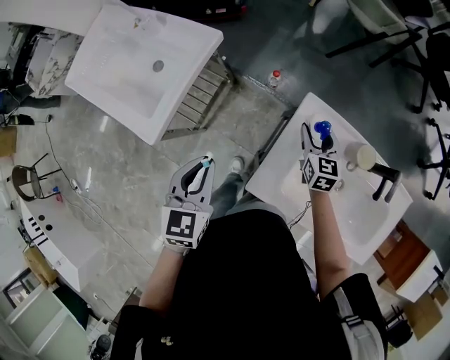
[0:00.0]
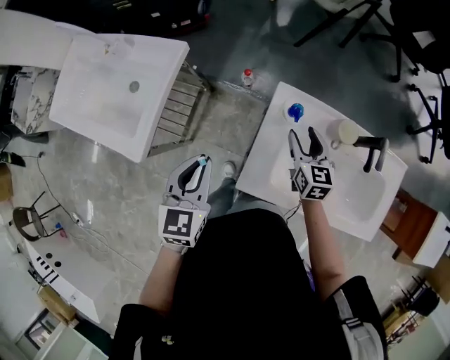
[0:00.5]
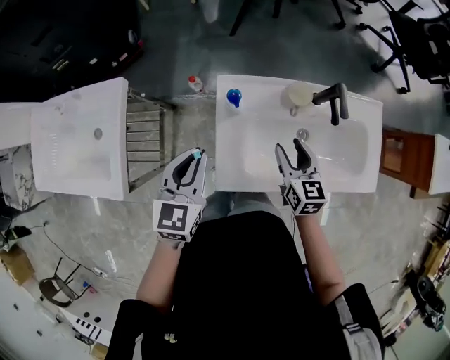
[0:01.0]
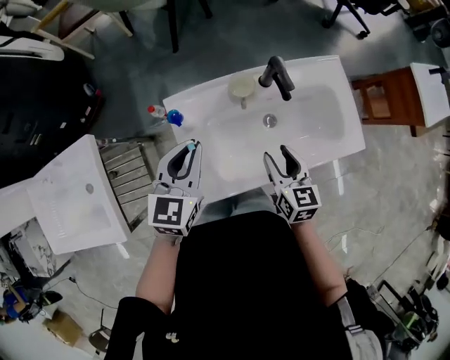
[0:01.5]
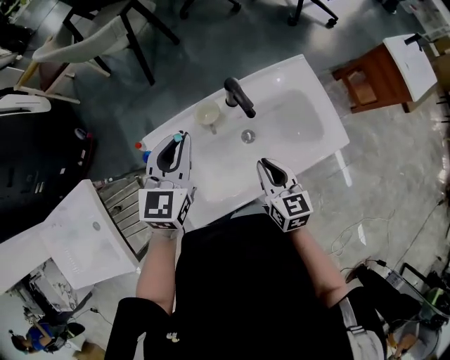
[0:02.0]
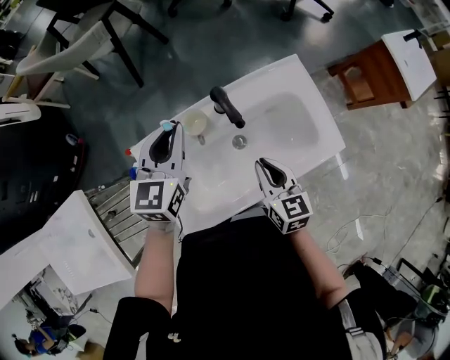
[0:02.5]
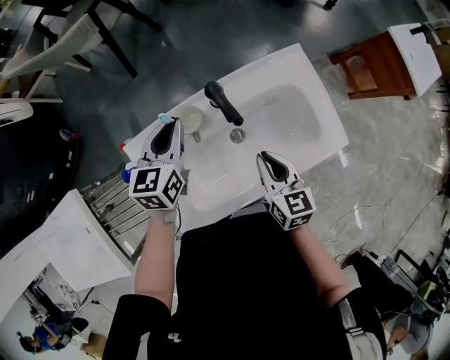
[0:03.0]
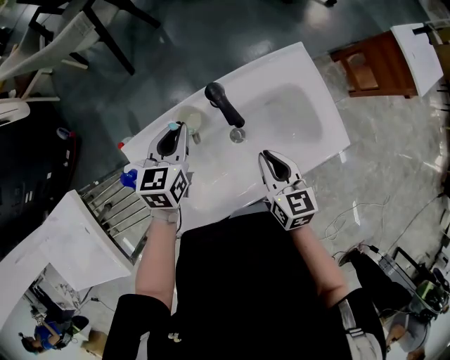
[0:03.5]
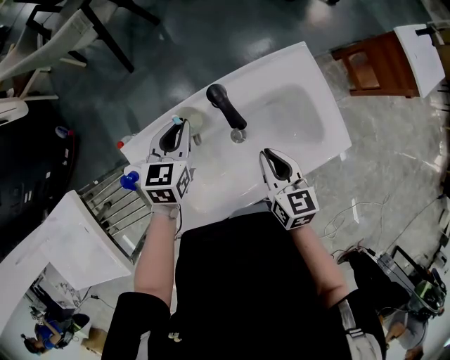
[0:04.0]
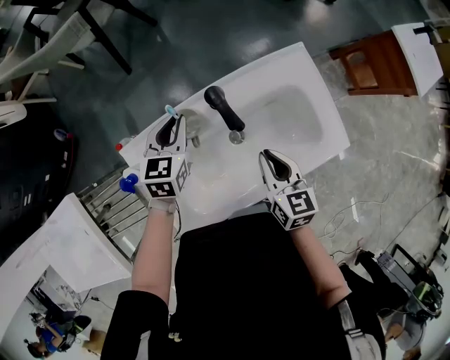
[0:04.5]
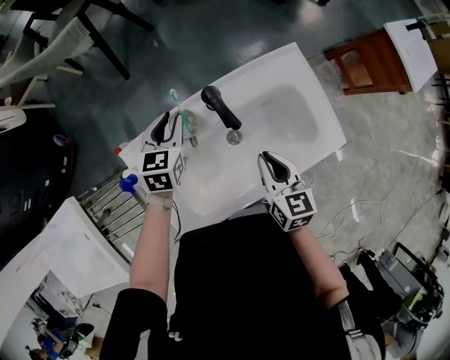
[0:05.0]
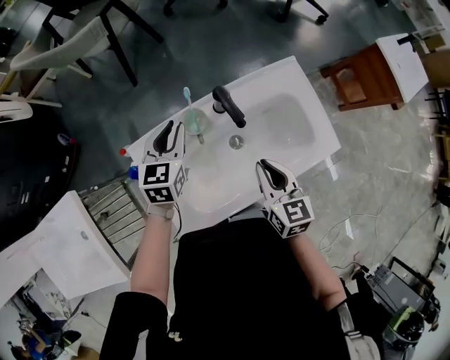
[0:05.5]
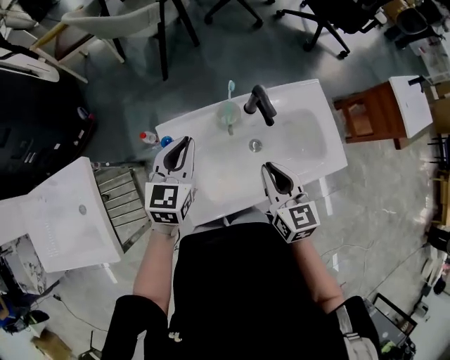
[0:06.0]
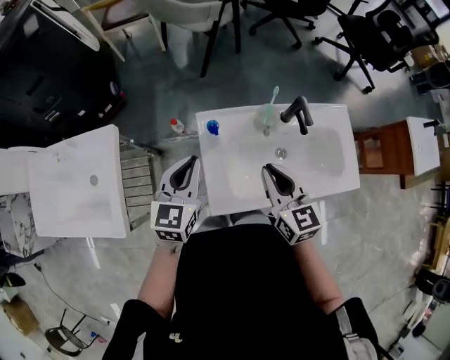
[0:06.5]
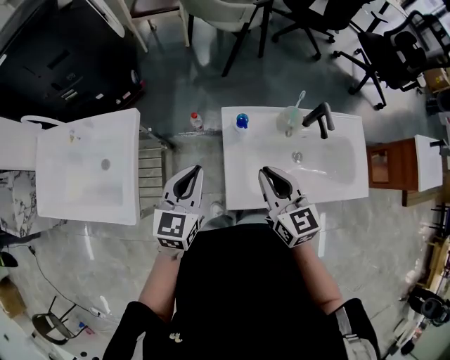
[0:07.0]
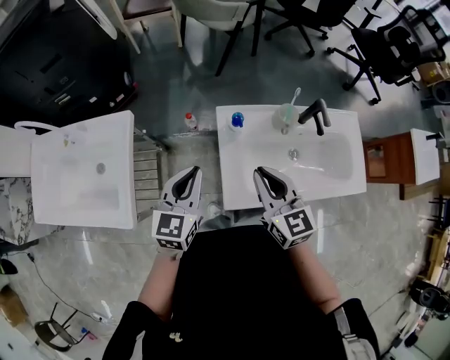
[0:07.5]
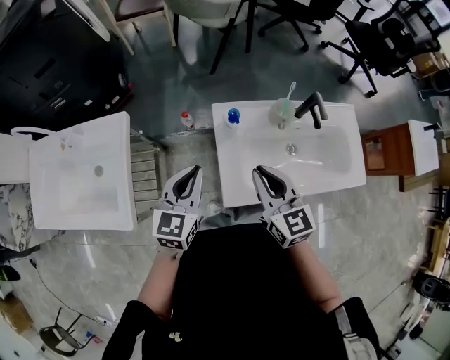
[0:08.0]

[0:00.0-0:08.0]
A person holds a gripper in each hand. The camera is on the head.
0:00.0 to 0:02.0: The right gripper changes place by about 35 cm, swivels roughly 40 degrees, and closes its fingers, while the left gripper changes place by some 40 cm, and rotates approximately 60 degrees.
0:02.0 to 0:04.0: The right gripper is displaced forward by about 5 cm. The left gripper is displaced downward and forward by some 20 cm.
0:04.0 to 0:06.0: The right gripper travels upward, to the left and backward by about 15 cm, while the left gripper travels upward, backward and to the left by roughly 20 cm.
0:06.0 to 0:08.0: The right gripper travels to the left by about 20 cm. Meanwhile the left gripper is displaced to the left and backward by approximately 20 cm.

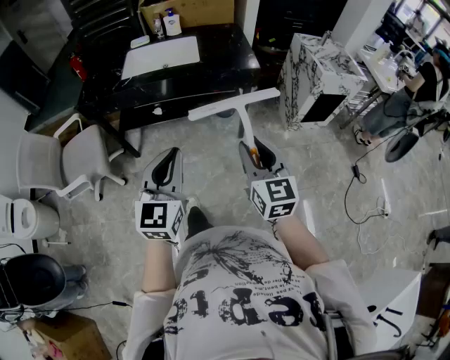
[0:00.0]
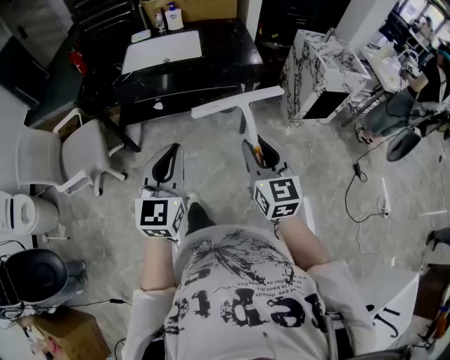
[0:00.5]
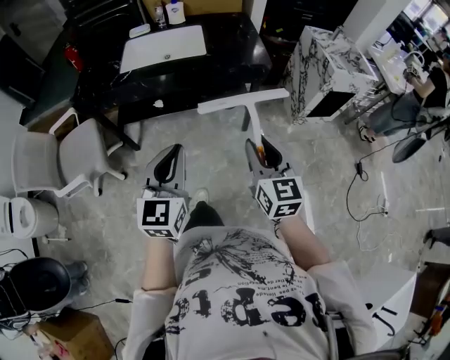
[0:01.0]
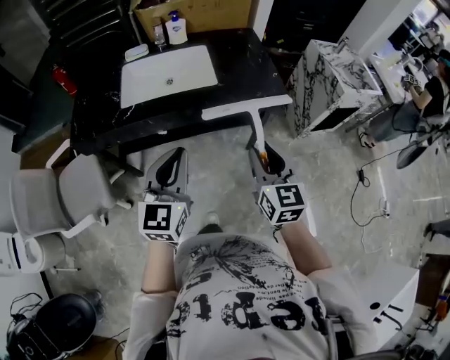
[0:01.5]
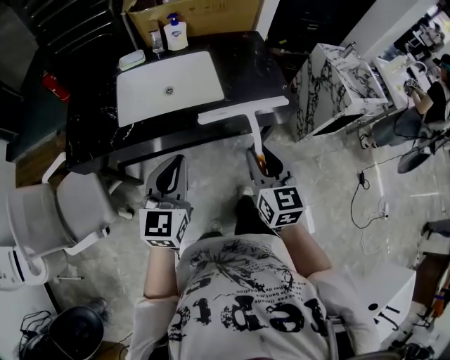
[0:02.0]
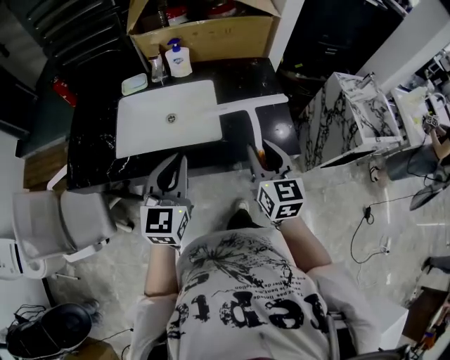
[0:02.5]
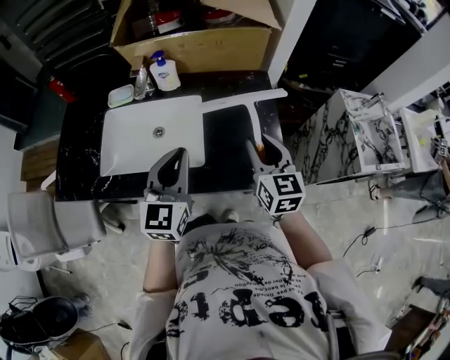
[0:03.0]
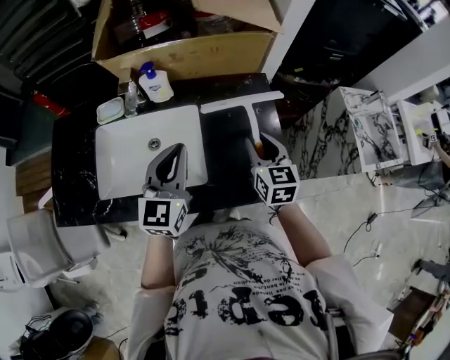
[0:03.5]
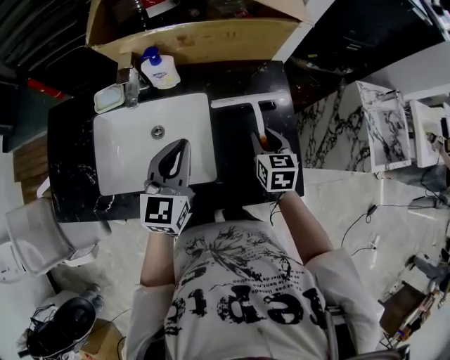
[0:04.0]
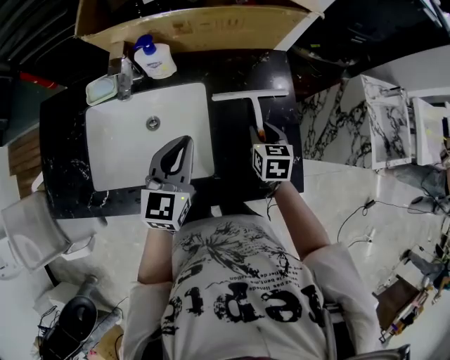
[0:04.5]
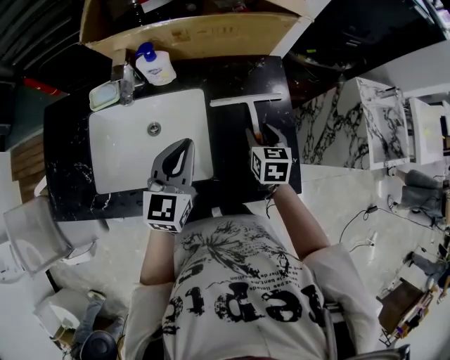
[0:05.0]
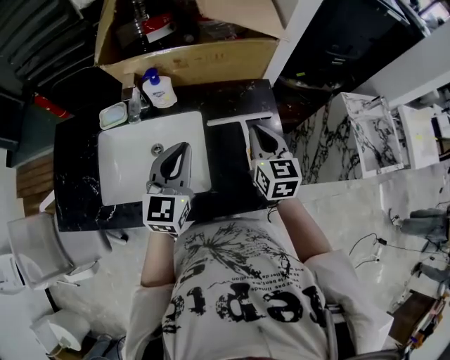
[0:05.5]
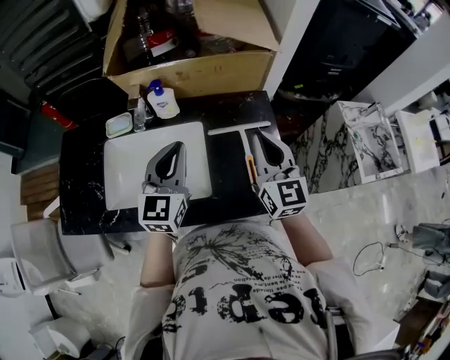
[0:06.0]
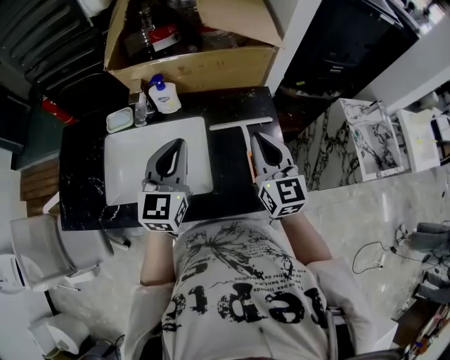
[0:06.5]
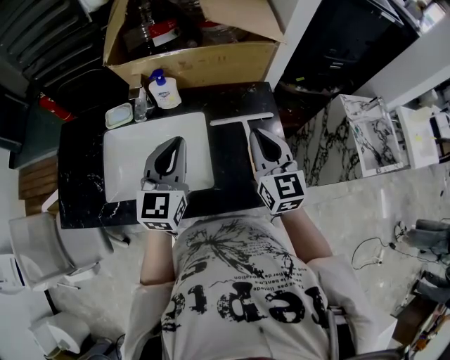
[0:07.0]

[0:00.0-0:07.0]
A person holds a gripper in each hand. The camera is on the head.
0:00.0 to 0:02.0: The two grippers go some 35 cm forward and to the left.
0:02.0 to 0:03.5: The grippers both shift forward by about 35 cm.
0:03.5 to 0:05.0: The right gripper goes approximately 10 cm downward. The left gripper goes roughly 5 cm downward.
0:05.0 to 0:07.0: The right gripper is displaced upward by approximately 20 cm, tips its fingers upward by roughly 40 degrees, and closes its fingers, while the left gripper shifts some 10 cm upward.

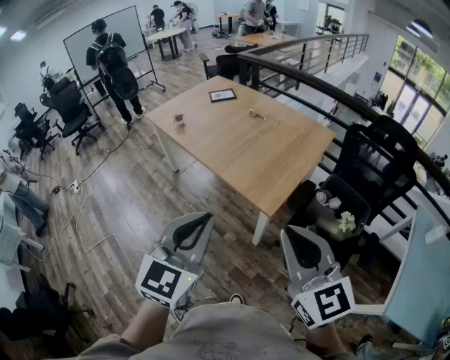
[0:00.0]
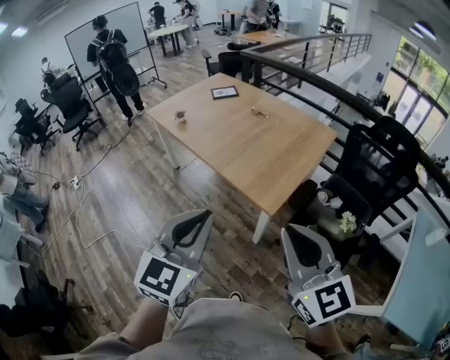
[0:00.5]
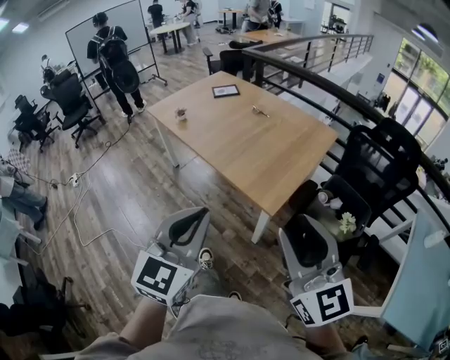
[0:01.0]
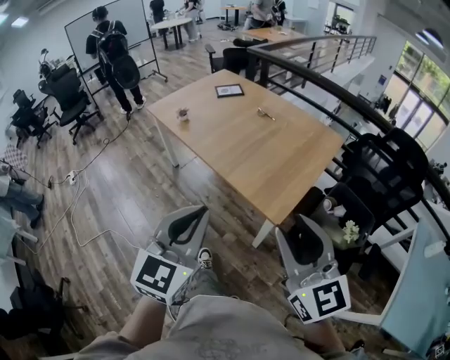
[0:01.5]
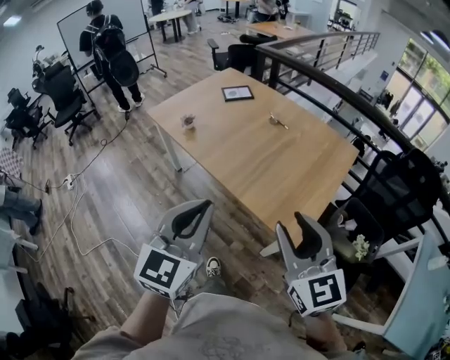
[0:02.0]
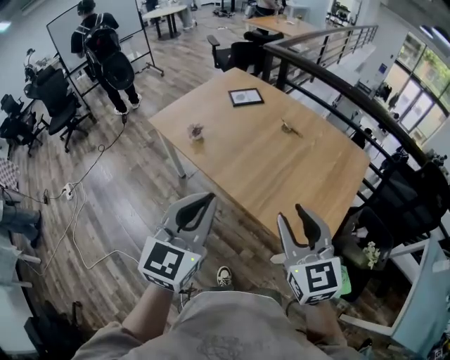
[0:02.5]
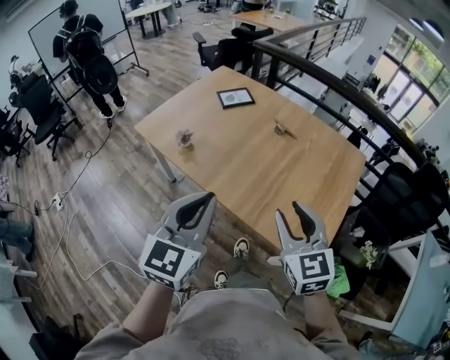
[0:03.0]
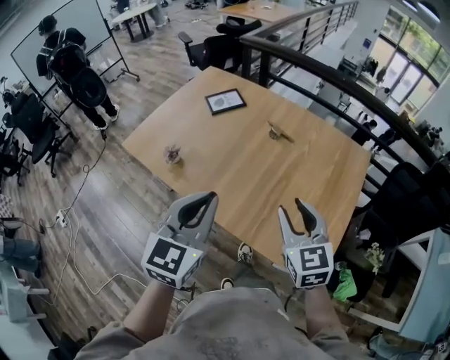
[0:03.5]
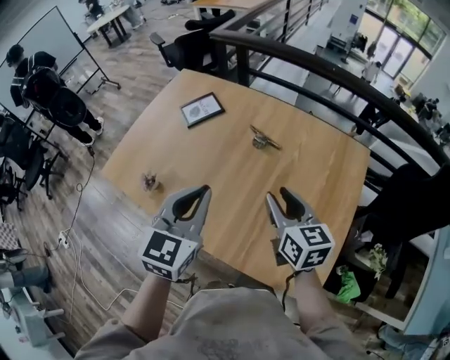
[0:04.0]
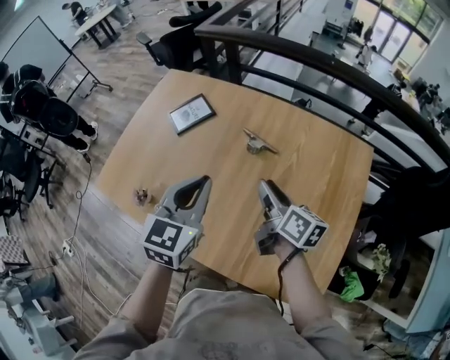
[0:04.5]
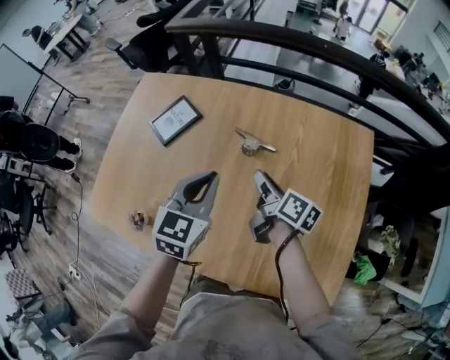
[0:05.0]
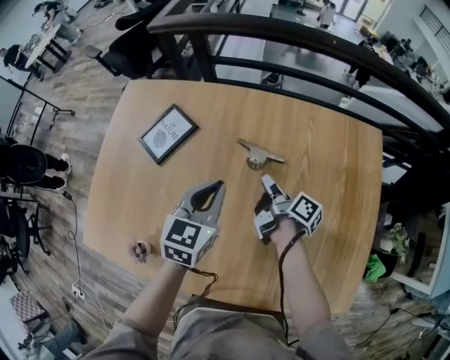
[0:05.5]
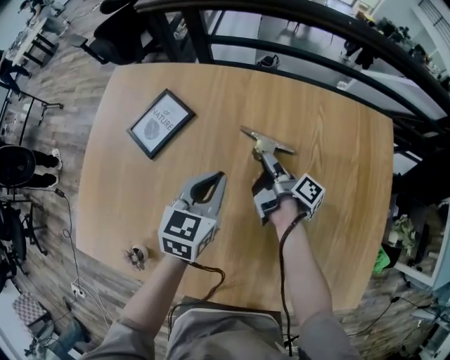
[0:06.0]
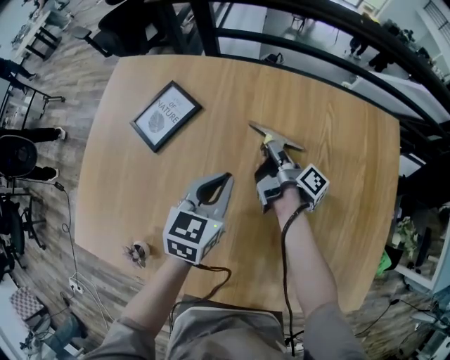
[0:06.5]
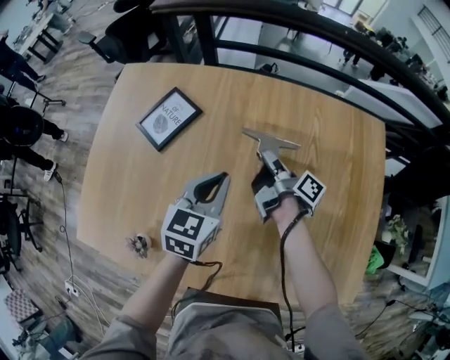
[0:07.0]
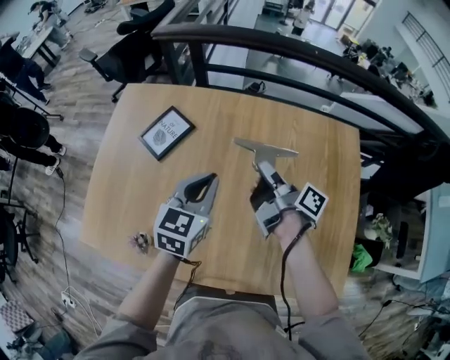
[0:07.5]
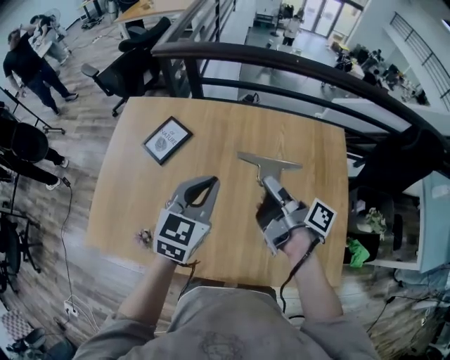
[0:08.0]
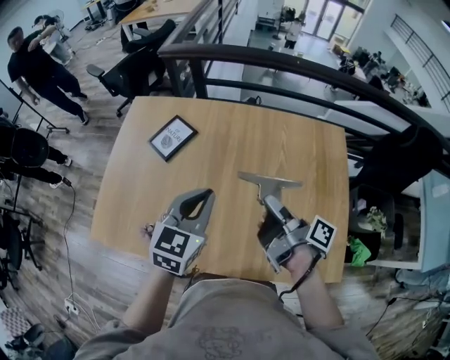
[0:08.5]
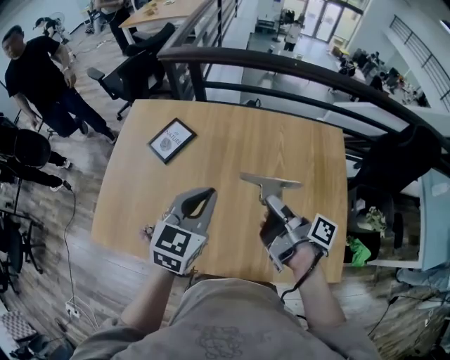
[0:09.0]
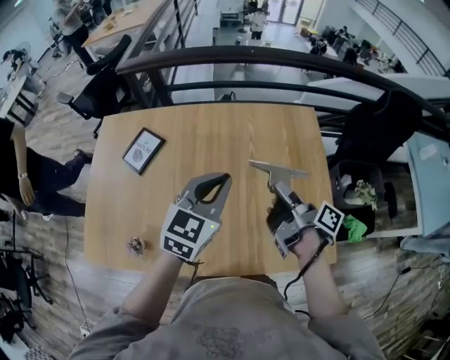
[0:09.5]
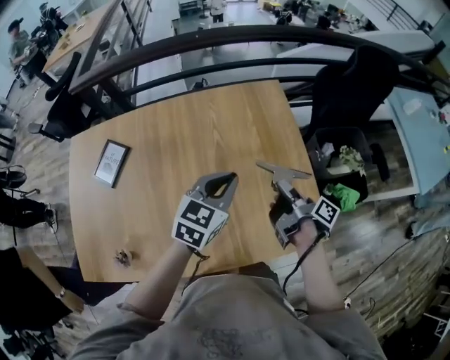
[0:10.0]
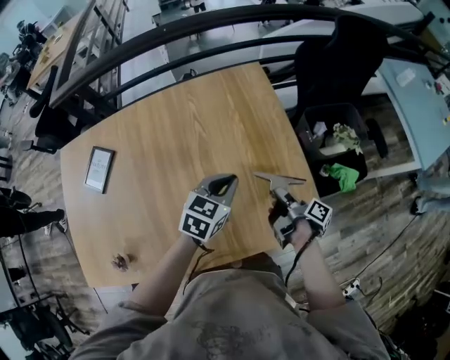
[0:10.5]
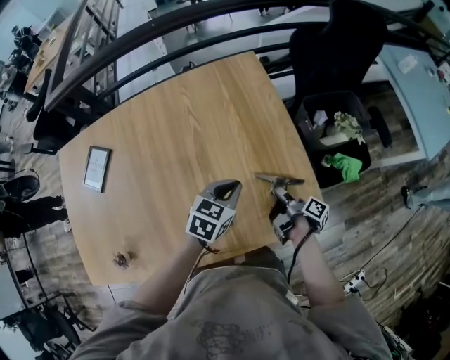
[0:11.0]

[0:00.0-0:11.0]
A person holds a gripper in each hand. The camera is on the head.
0:00.0 to 0:02.0: The two grippers go roughly 25 cm forward and to the left. The right gripper opens.
0:02.0 to 0:03.5: Both grippers move forward, some 30 cm. The right gripper turns by about 20 degrees.
0:03.5 to 0:05.5: Both grippers are carried forward, about 40 cm. Both grippers travel together downward, approximately 25 cm. The right gripper rotates around the line of its fingers by about 100 degrees, clockwise from behind; the left gripper swivels some 30 degrees.
0:05.5 to 0:07.5: The right gripper is displaced upward by approximately 15 cm, and closes, while the left gripper moves upward, about 5 cm.
0:07.5 to 0:09.0: Both grippers travel together backward and upward, approximately 15 cm.
0:09.0 to 0:11.0: The right gripper shifts by roughly 40 cm, and swivels roughly 40 degrees, while the left gripper changes place by roughly 40 cm, and rotates about 40 degrees.
